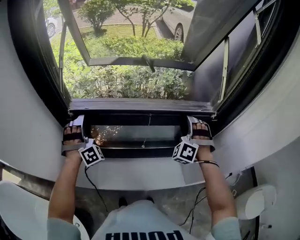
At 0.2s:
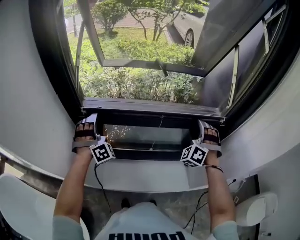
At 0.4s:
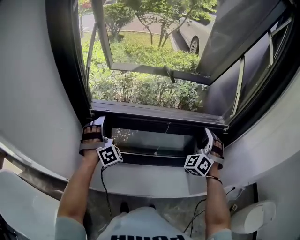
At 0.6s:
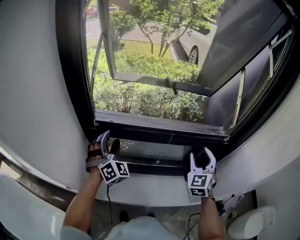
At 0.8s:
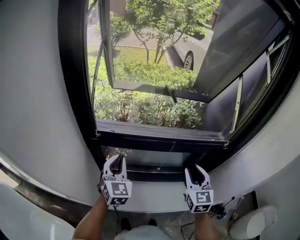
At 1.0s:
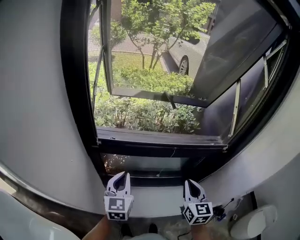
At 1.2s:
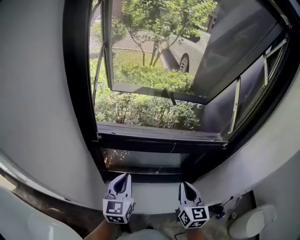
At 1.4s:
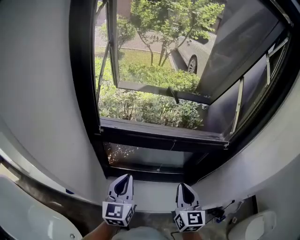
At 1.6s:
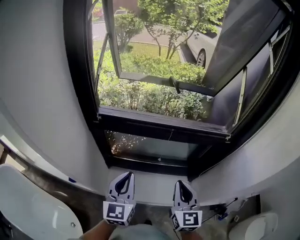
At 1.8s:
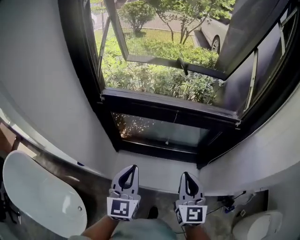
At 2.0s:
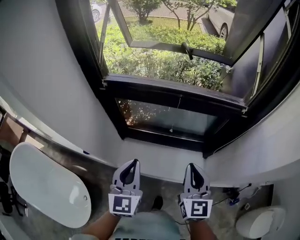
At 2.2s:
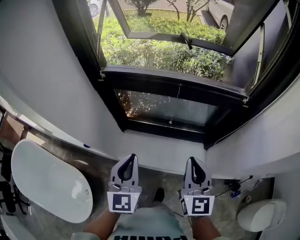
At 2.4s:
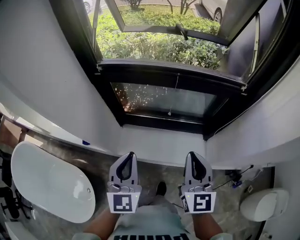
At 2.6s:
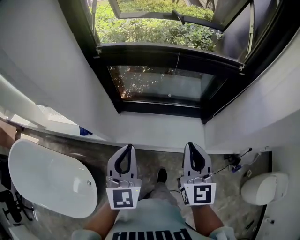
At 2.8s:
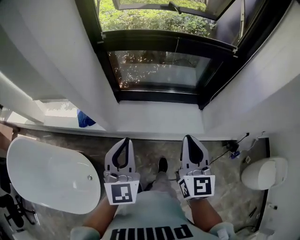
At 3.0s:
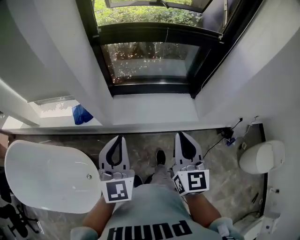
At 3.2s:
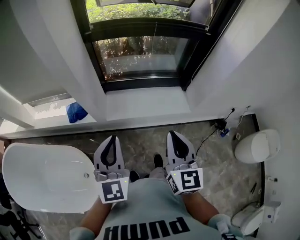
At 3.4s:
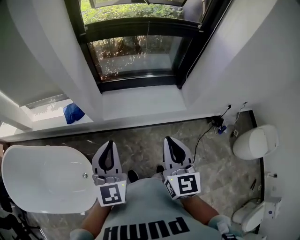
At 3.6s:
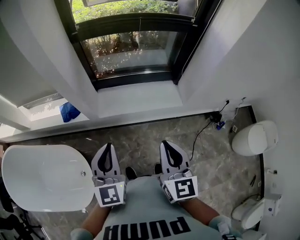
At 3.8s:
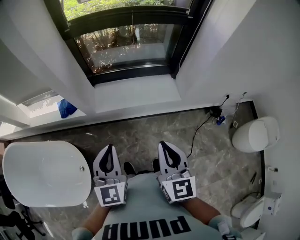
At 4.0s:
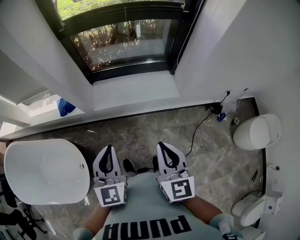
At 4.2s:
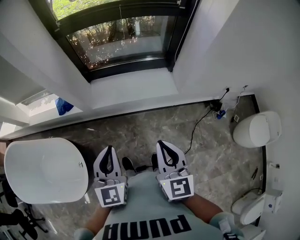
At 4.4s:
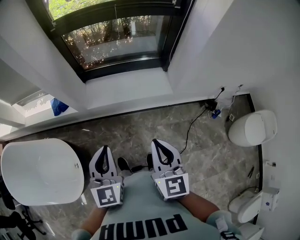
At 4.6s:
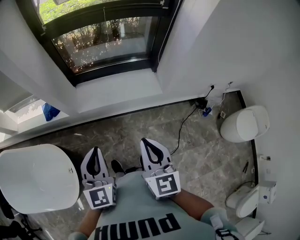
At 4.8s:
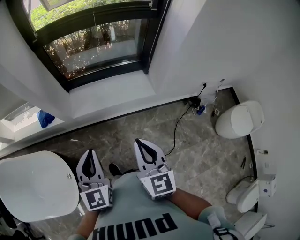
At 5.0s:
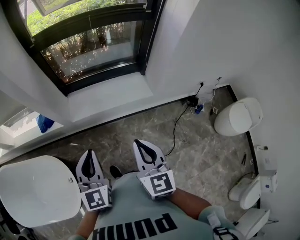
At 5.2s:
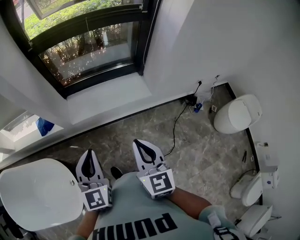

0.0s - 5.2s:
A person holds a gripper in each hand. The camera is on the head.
0.0s - 1.8s: The left gripper shifts roughly 30 cm backward and to the right, rolls counterclockwise, seen from behind, by approximately 90 degrees, and closes its fingers. The right gripper travels backward by some 25 cm, twists about 80 degrees clockwise, seen from behind, and closes its fingers.
1.8s - 3.4s: The two grippers go some 35 cm backward.
3.4s - 5.2s: Both grippers travel together to the right, about 10 cm.

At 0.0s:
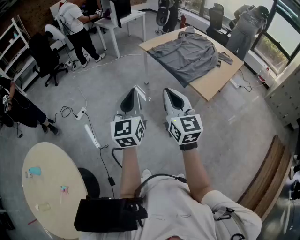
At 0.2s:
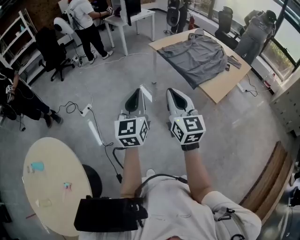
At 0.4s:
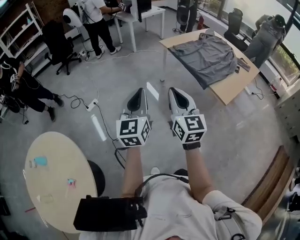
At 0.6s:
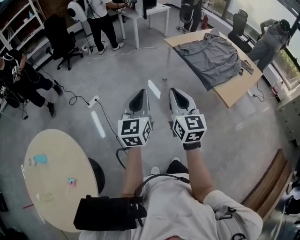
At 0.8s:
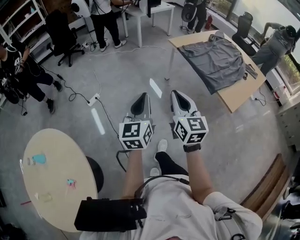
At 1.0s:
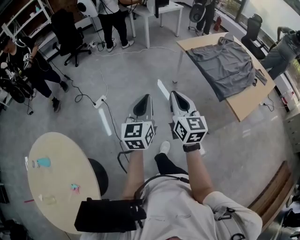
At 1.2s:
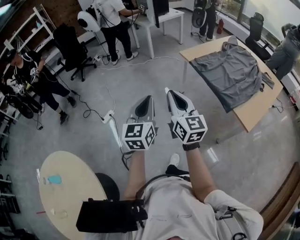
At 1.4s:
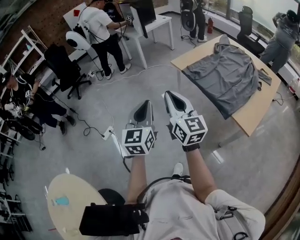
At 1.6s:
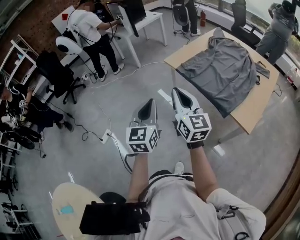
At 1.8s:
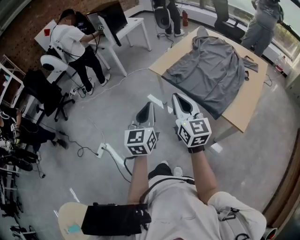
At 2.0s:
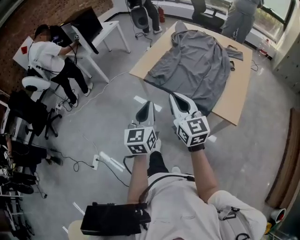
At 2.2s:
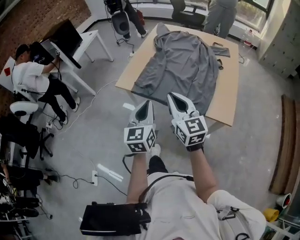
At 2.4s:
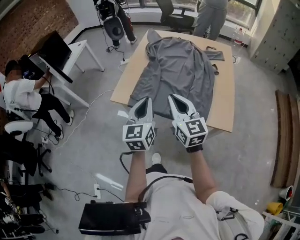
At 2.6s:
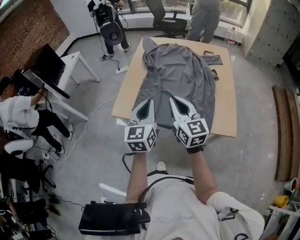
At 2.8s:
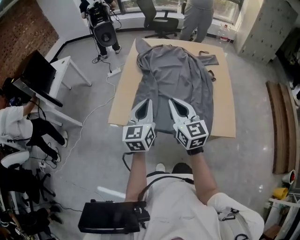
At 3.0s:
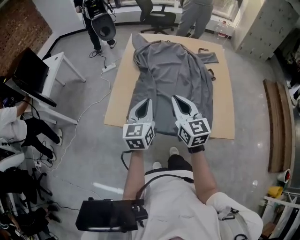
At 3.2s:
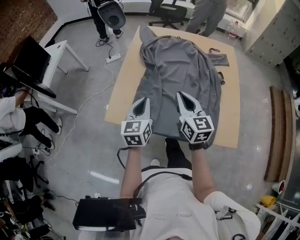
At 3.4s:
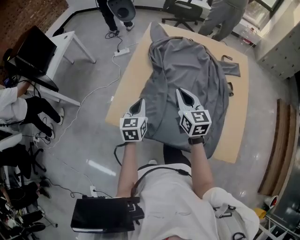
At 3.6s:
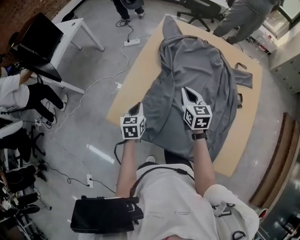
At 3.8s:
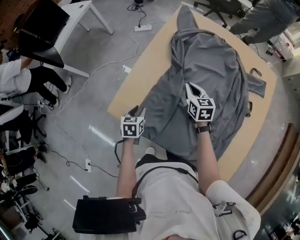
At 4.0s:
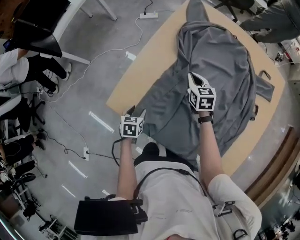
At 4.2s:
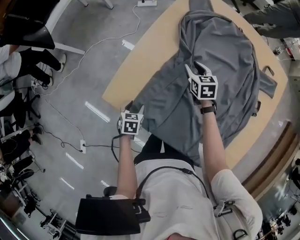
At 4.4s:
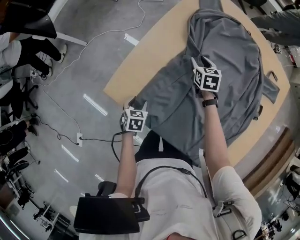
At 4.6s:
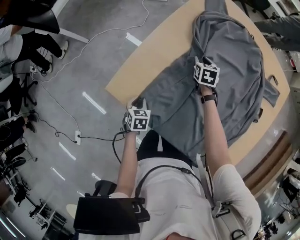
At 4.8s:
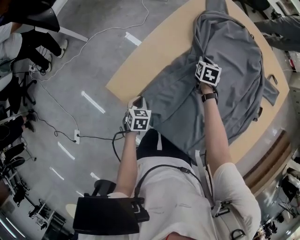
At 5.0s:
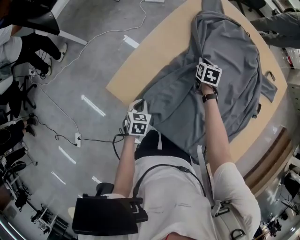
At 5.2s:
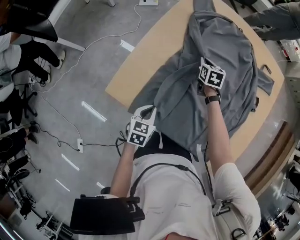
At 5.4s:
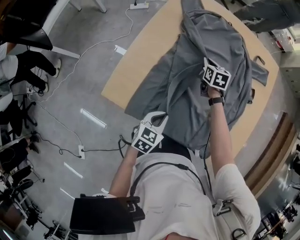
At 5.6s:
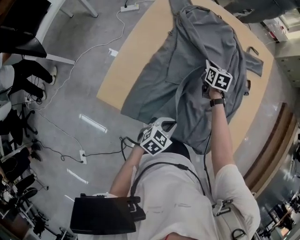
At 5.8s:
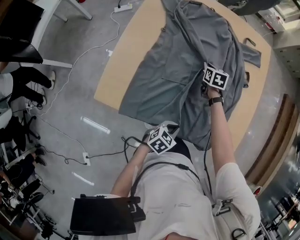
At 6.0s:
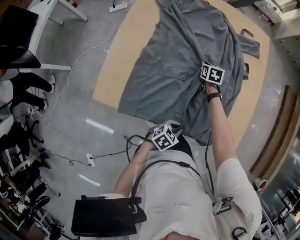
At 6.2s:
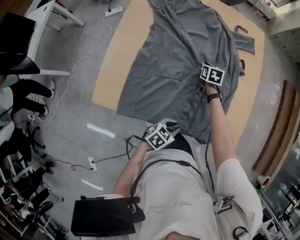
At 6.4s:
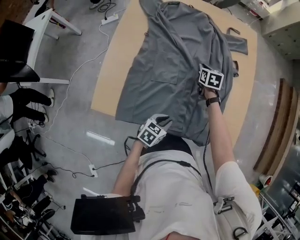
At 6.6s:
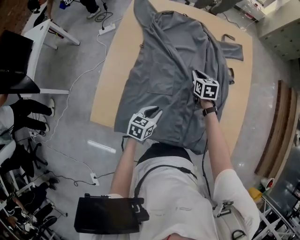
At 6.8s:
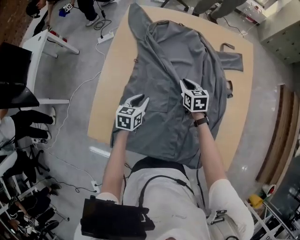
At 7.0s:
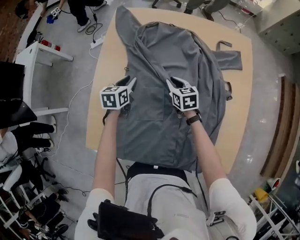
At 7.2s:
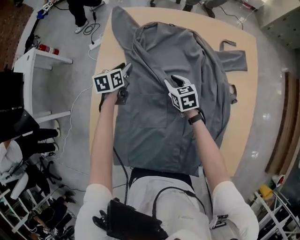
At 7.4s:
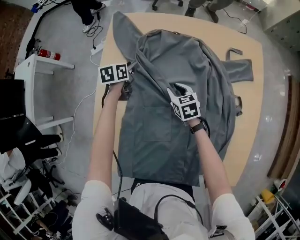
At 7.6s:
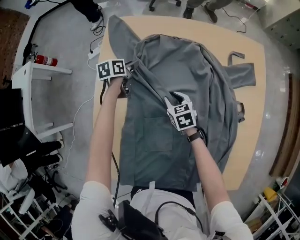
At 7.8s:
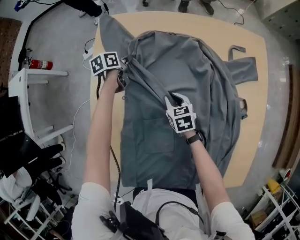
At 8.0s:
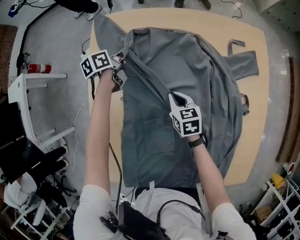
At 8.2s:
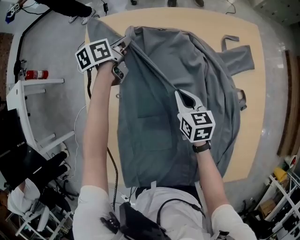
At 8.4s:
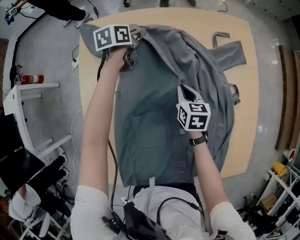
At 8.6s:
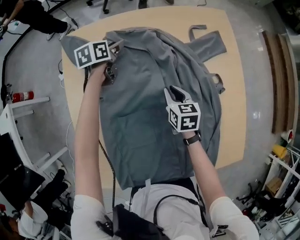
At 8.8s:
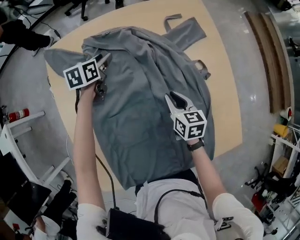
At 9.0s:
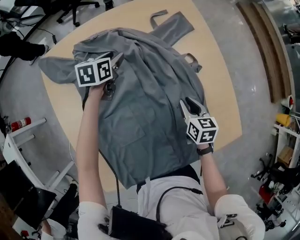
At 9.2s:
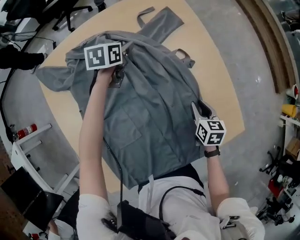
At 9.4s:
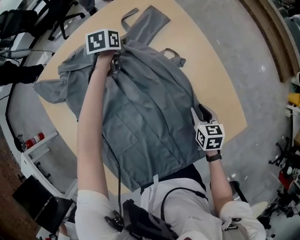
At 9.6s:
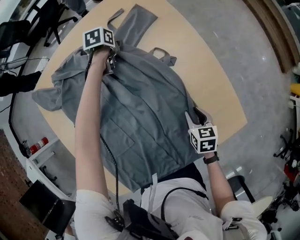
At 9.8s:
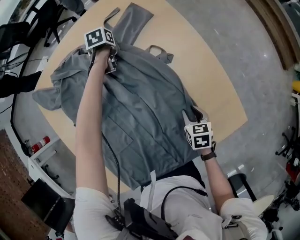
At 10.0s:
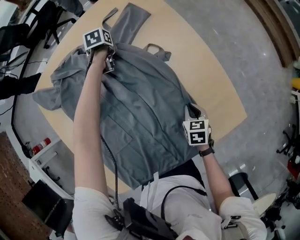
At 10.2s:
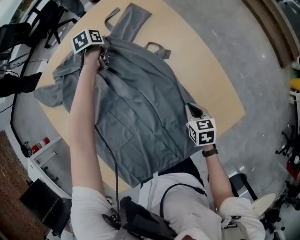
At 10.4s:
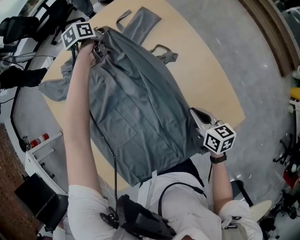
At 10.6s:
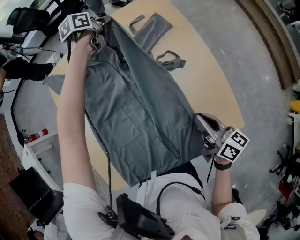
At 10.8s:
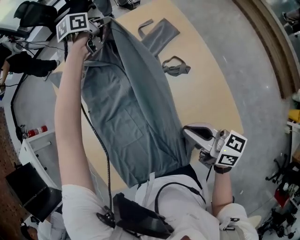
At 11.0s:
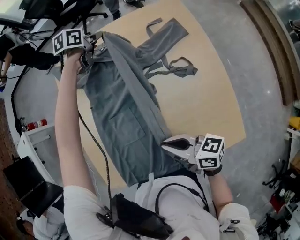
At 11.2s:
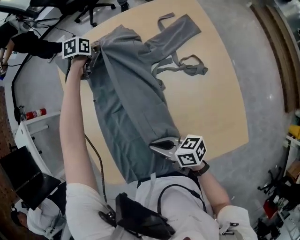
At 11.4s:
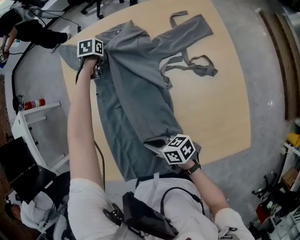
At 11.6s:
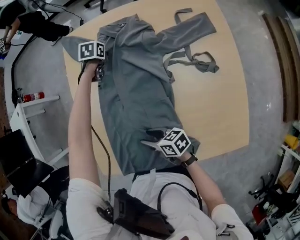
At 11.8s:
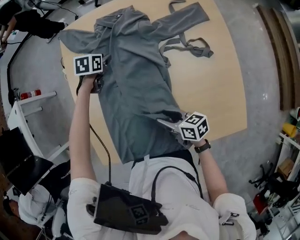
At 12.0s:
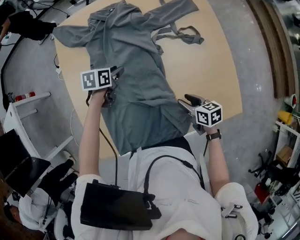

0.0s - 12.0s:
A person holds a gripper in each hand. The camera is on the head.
0.0s - 1.6s: The grippers both shift forward by some 35 cm.
1.6s - 3.0s: Both grippers are carried roughly 50 cm. The left gripper changes its angle by about 40 degrees; the right gripper swivels approximately 40 degrees.
3.0s - 4.4s: The right gripper travels forward and downward by about 50 cm, angles its fingers downward, by approximately 40 degrees, and opens its fingers; the left gripper travels downward by about 35 cm, angles its fingers downward, by roughly 50 degrees, and opens its fingers.
4.4s - 6.0s: The right gripper shifts by some 25 cm, turns by roughly 30 degrees, and closes up, while the left gripper moves about 35 cm, turns by approximately 60 degrees, and closes.
6.0s - 7.6s: The right gripper reaches some 10 cm upward, then returns. The left gripper changes place by approximately 70 cm, rotates roughly 40 degrees, and opens its fingers.
7.6s - 9.0s: The left gripper moves some 30 cm, changes its angle by approximately 40 degrees, and closes, then opens again, while the right gripper ends up roughly 30 cm from where it was, and turns by roughly 50 degrees.
9.0s - 10.4s: The left gripper goes approximately 15 cm forward and to the right, and closes, while the right gripper heads to the right and backward, covering about 15 cm.
10.4s - 12.0s: The left gripper moves up and down over about 20 cm, changing direction 2 times, and opens up, while the right gripper moves some 15 cm upward and comes back, changes its angle by about 30 degrees, and opens up.

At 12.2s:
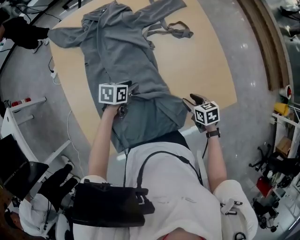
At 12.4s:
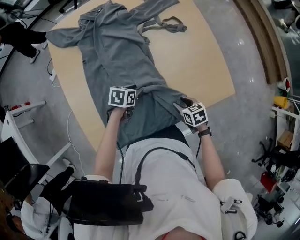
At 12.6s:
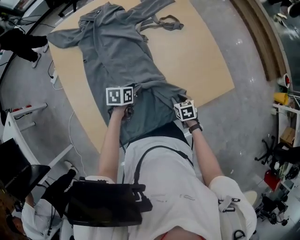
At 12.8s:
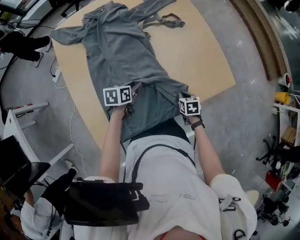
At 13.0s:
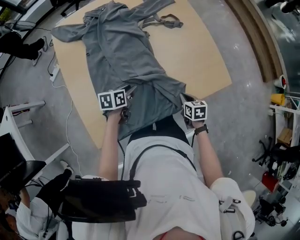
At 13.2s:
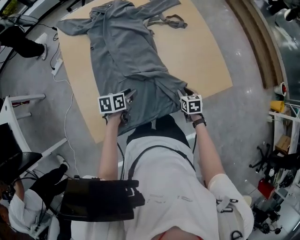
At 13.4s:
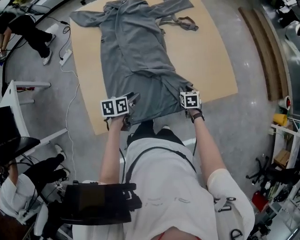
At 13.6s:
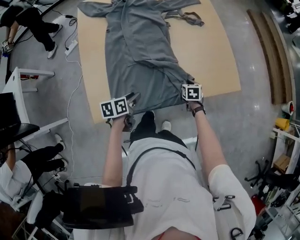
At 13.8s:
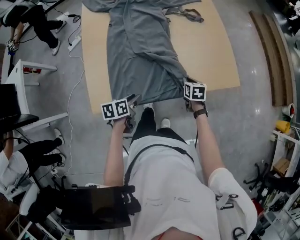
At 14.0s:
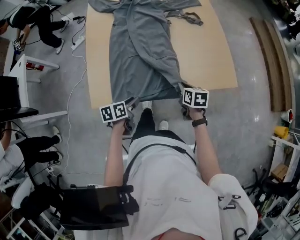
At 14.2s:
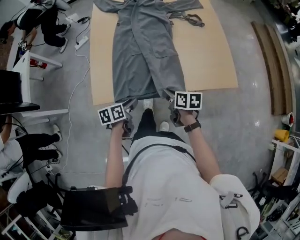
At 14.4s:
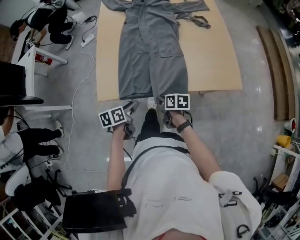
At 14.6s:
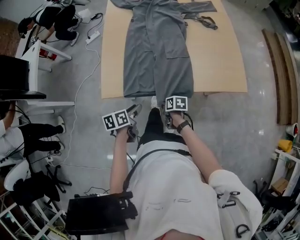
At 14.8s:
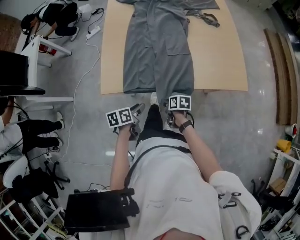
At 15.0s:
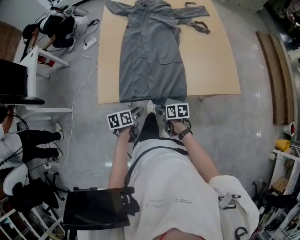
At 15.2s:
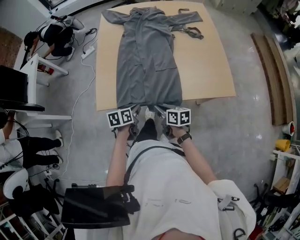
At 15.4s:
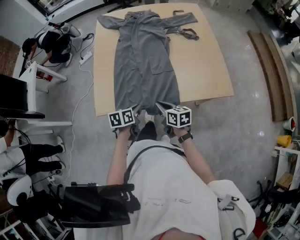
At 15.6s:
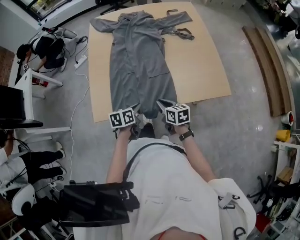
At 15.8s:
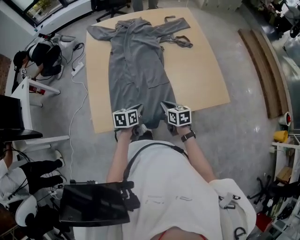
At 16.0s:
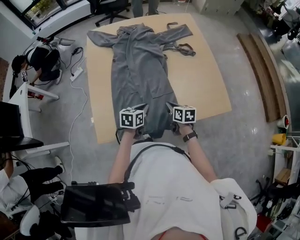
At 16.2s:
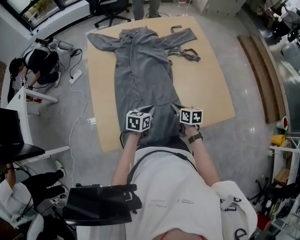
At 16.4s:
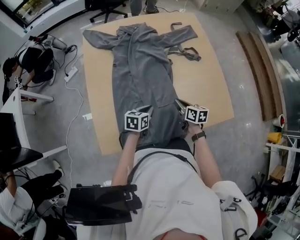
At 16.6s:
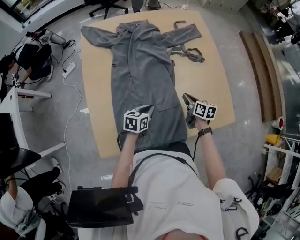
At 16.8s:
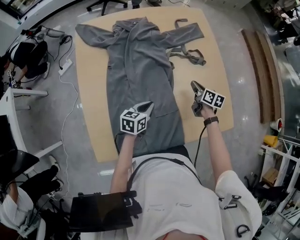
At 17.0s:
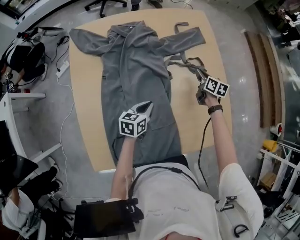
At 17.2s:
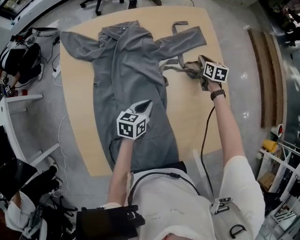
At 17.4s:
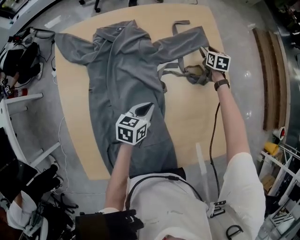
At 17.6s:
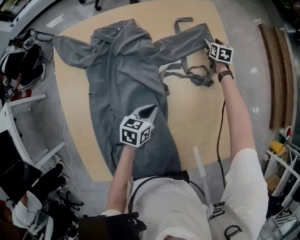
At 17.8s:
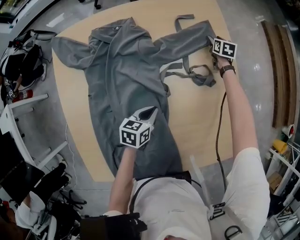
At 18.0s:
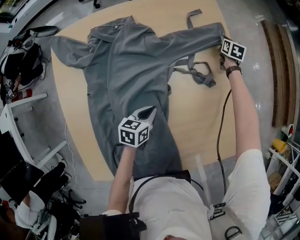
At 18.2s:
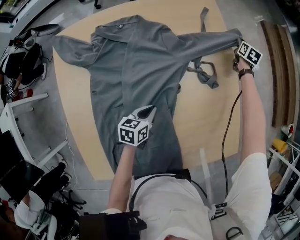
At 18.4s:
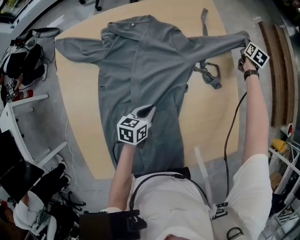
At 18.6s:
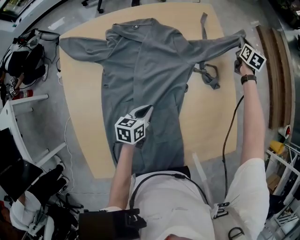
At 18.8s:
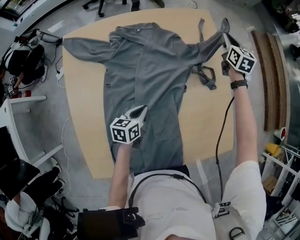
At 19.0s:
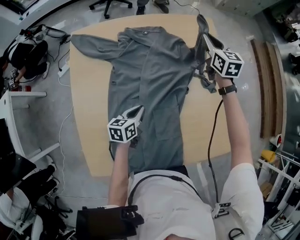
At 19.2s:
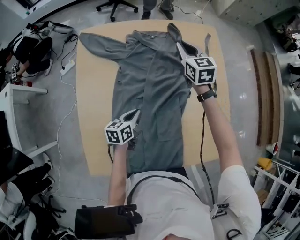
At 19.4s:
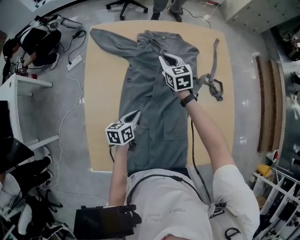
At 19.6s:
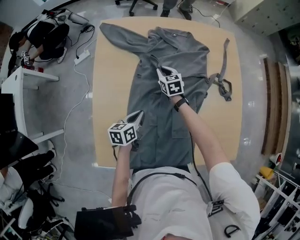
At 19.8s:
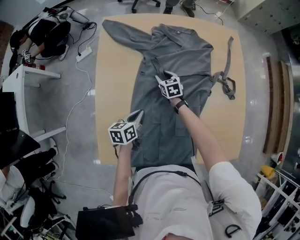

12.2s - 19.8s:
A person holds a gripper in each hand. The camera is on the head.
12.2s - 13.8s: The right gripper moves backward, about 5 cm, and closes. Meanwhile the left gripper is displaced backward by some 30 cm, and rotates roughly 30 degrees.
13.8s - 15.2s: The right gripper moves up and down over about 15 cm, changing direction 2 times, and swivels about 40 degrees; the left gripper closes up.
15.2s - 16.8s: The right gripper shifts by some 50 cm, and turns by about 30 degrees; the left gripper ends up about 30 cm from where it was, and changes its angle by some 30 degrees.
16.8s - 18.2s: The left gripper heads forward and downward, covering roughly 15 cm. Meanwhile the right gripper goes roughly 40 cm forward, changes its angle by about 40 degrees, and opens, then closes again.
18.2s - 19.8s: The left gripper changes place by roughly 25 cm, and changes its angle by some 30 degrees, while the right gripper goes upward and returns, about 20 cm each way, and swivels roughly 50 degrees.
